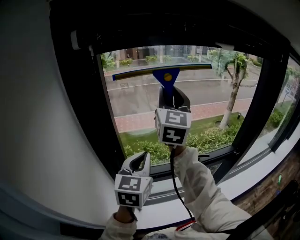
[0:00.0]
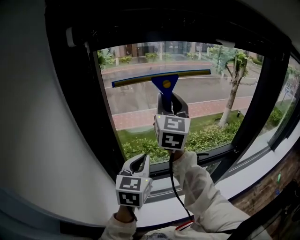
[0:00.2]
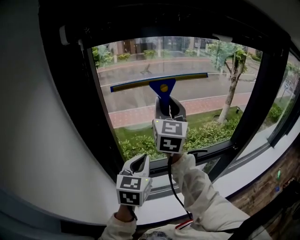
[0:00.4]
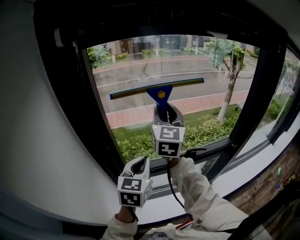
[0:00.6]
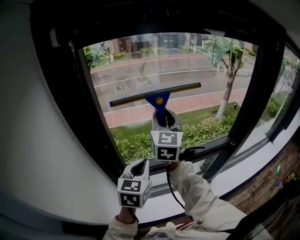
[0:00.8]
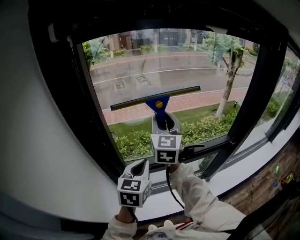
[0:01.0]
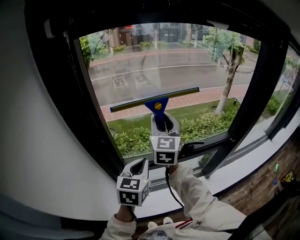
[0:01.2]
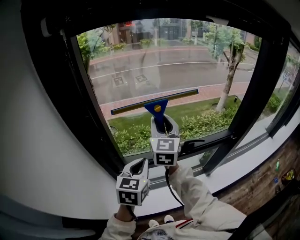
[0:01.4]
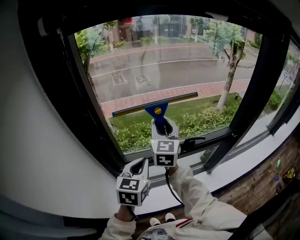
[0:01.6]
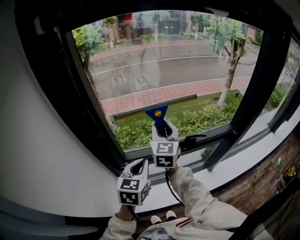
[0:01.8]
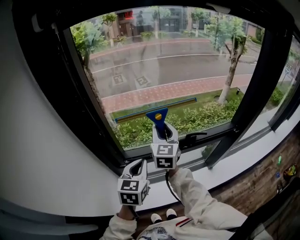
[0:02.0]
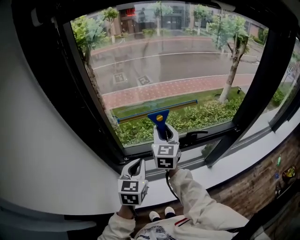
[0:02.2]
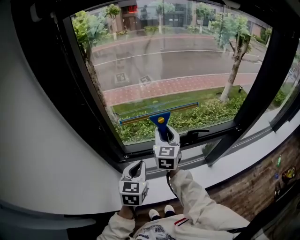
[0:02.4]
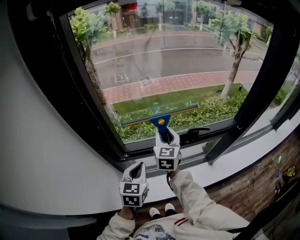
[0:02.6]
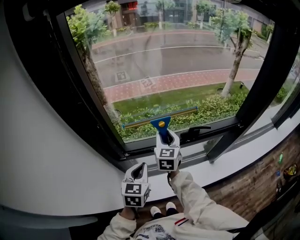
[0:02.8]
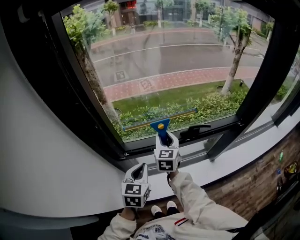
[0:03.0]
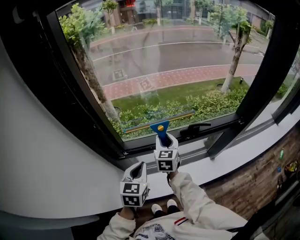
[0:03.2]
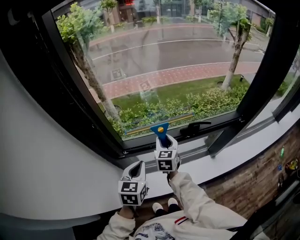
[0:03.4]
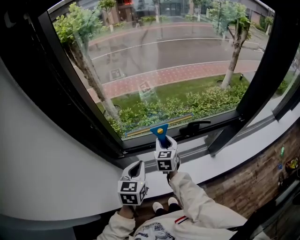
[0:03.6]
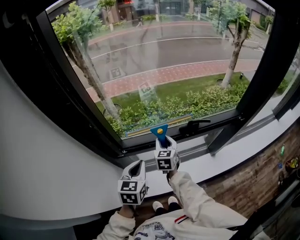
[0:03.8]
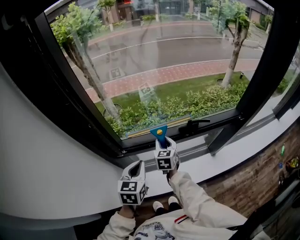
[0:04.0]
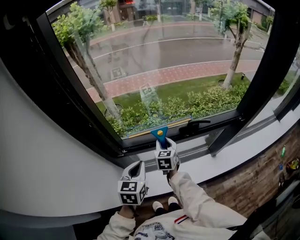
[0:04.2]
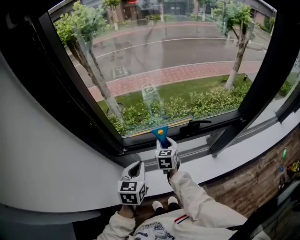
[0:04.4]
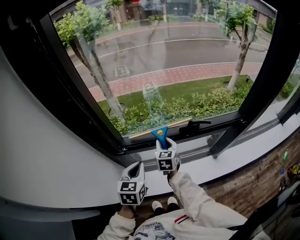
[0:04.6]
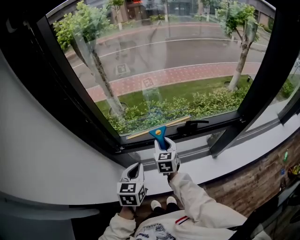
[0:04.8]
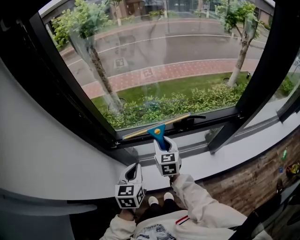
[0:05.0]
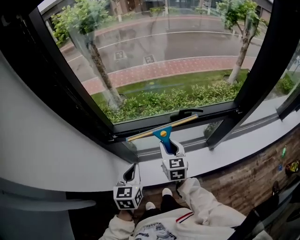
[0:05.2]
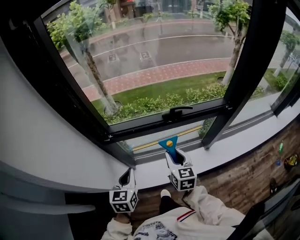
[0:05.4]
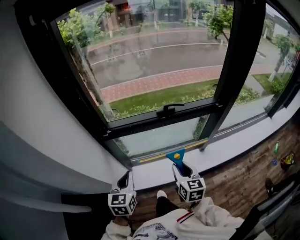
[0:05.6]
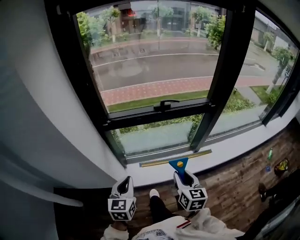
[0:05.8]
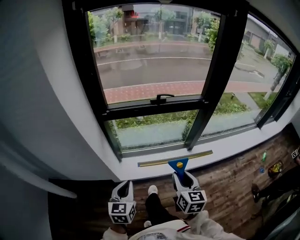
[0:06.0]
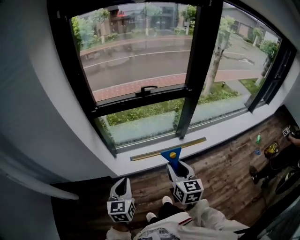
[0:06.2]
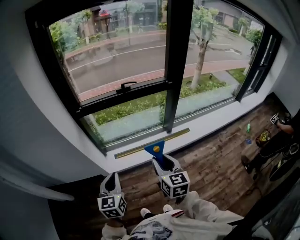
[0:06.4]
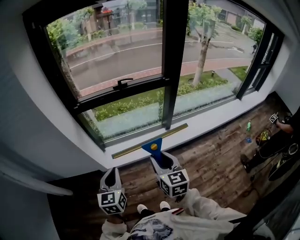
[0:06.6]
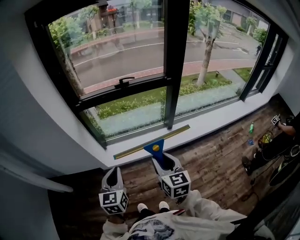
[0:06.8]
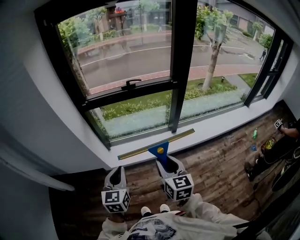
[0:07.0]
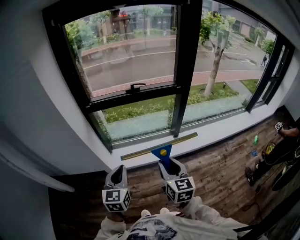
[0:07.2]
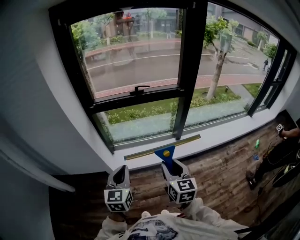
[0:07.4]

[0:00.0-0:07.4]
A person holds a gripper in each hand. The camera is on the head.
0:00.0 to 0:01.4: The left gripper is displaced downward by about 10 cm. Meanwhile the right gripper moves downward, roughly 20 cm.
0:01.4 to 0:03.0: The left gripper travels downward by approximately 10 cm, while the right gripper is displaced downward by some 20 cm.
0:03.0 to 0:04.4: The right gripper heads downward, covering about 10 cm.
0:04.4 to 0:06.0: The left gripper travels backward by roughly 40 cm, while the right gripper goes some 50 cm backward and to the right.
0:06.0 to 0:07.4: The left gripper travels to the right, backward and upward by approximately 15 cm. Meanwhile the right gripper travels backward, to the right and upward by roughly 15 cm.

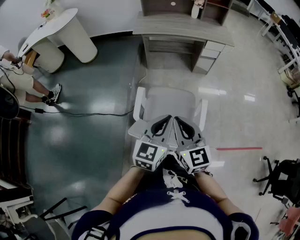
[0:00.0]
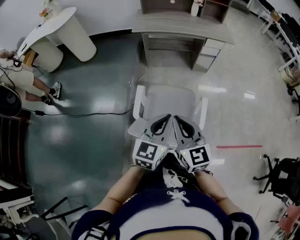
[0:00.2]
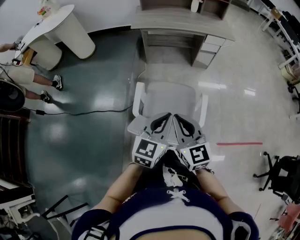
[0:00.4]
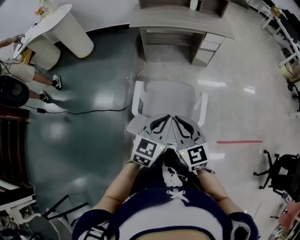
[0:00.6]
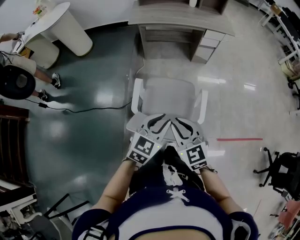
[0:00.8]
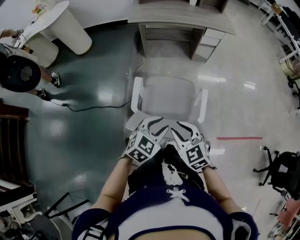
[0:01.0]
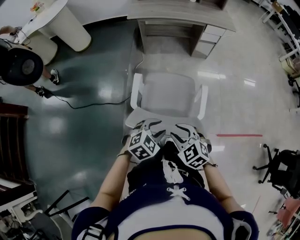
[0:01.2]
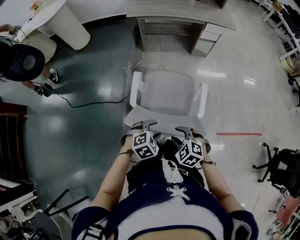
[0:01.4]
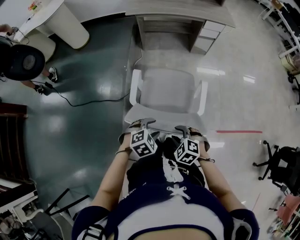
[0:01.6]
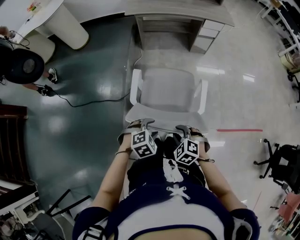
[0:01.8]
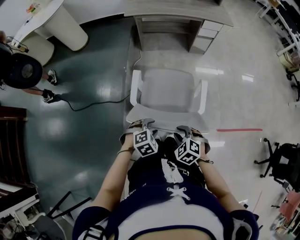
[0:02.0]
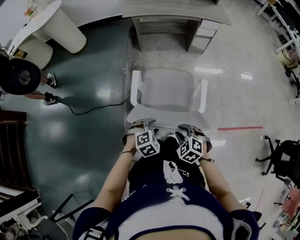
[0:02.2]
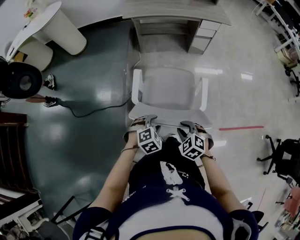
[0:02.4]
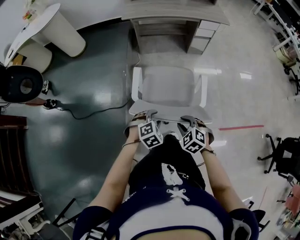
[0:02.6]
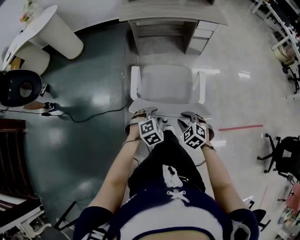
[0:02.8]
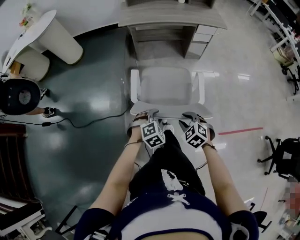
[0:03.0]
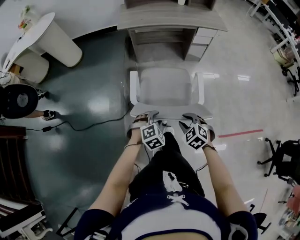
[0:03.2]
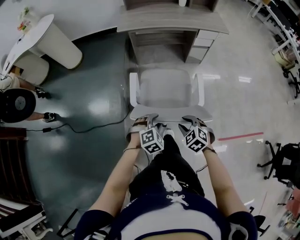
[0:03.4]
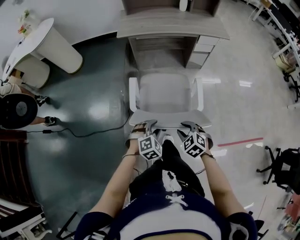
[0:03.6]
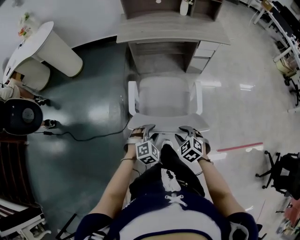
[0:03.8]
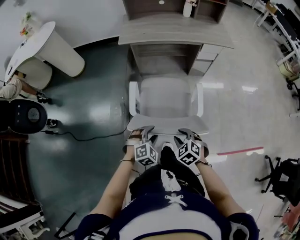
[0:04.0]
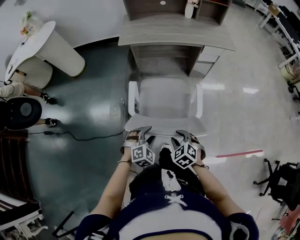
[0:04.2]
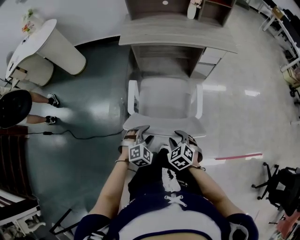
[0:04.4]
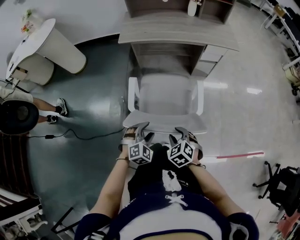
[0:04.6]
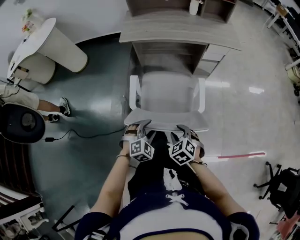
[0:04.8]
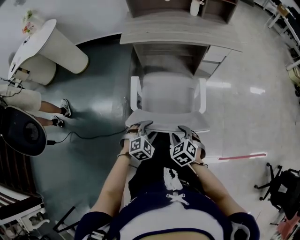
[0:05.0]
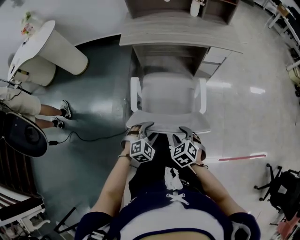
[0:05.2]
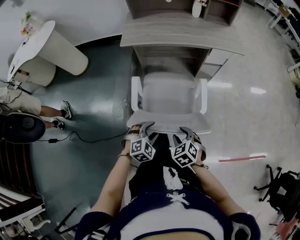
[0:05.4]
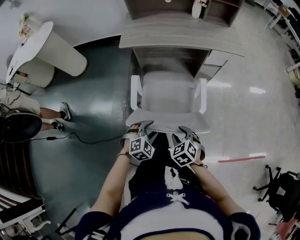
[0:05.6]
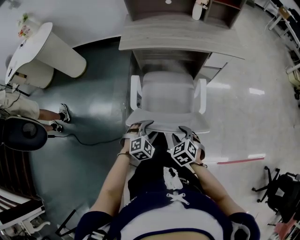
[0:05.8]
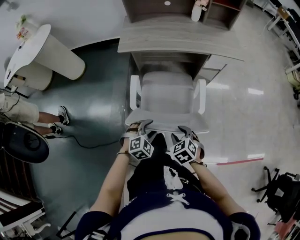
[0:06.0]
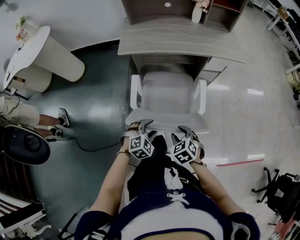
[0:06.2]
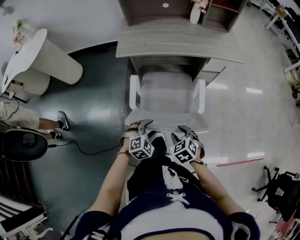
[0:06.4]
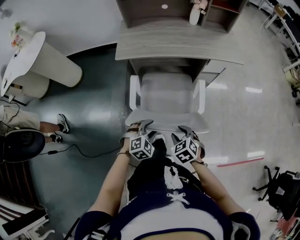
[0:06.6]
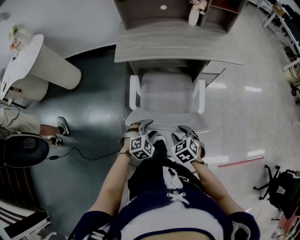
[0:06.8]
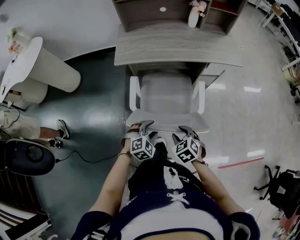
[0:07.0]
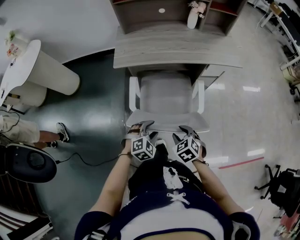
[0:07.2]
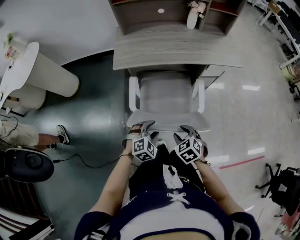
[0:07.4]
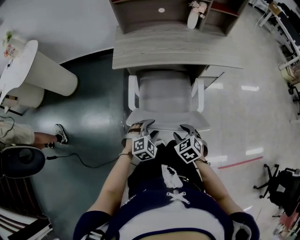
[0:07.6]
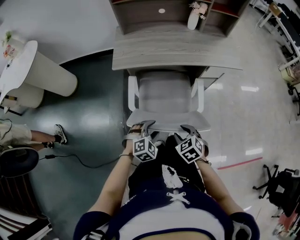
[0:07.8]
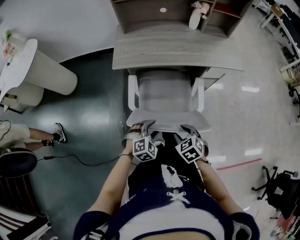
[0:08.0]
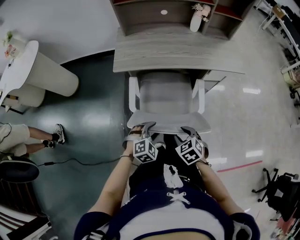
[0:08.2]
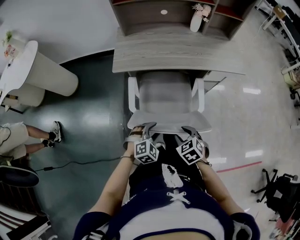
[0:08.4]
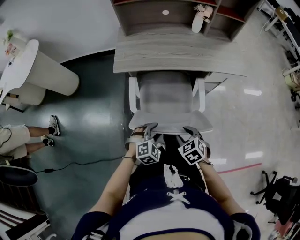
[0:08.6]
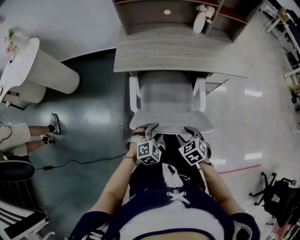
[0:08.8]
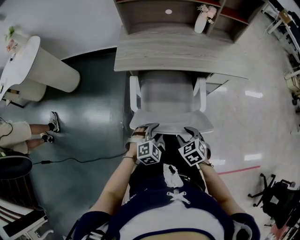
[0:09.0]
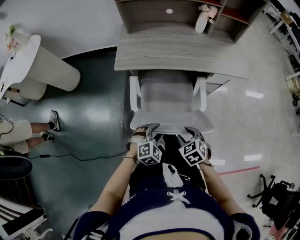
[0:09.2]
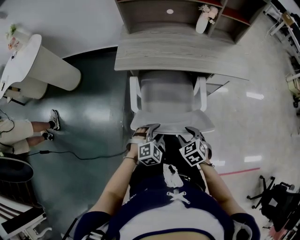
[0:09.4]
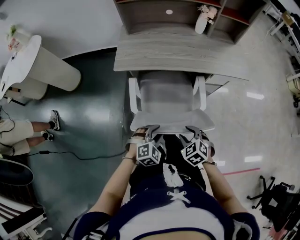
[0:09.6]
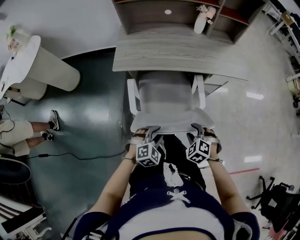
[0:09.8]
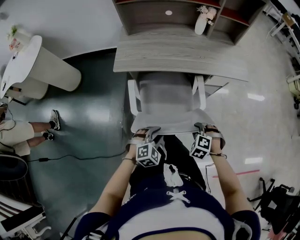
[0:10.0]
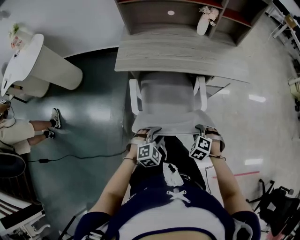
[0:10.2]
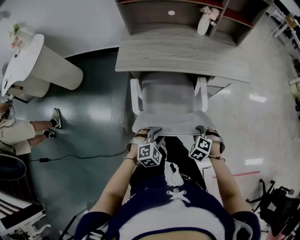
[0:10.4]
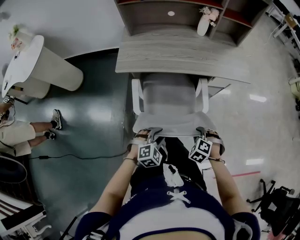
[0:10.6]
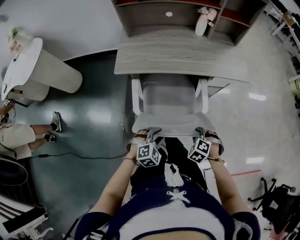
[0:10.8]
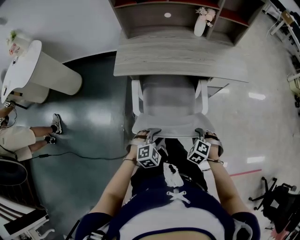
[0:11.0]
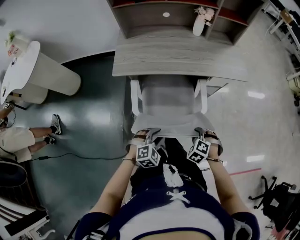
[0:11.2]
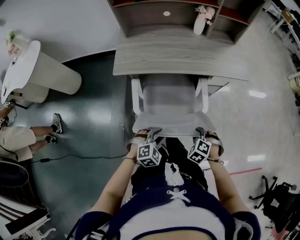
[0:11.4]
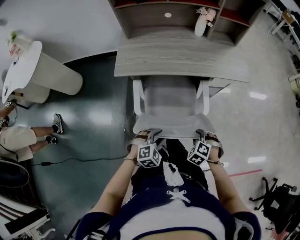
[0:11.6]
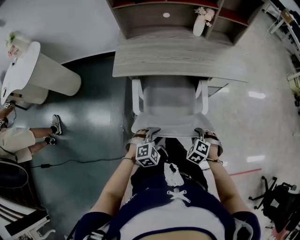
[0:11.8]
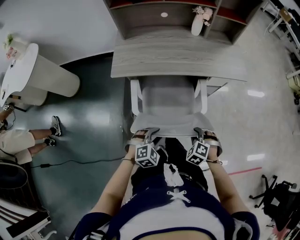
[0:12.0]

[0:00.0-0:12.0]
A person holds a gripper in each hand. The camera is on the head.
0:00.0 to 0:01.6: The two grippers go roughly 25 cm downward and backward. The right gripper points its fingers approximately 50 degrees further downward, and opens its fingers. The left gripper tilts its fingers approximately 50 degrees downward, and opens up.
0:01.6 to 0:03.0: The grippers both shift forward by approximately 10 cm.
0:03.0 to 0:04.4: The grippers both shift forward by some 15 cm.
0:04.4 to 0:06.0: The grippers both shift forward by approximately 15 cm.
0:06.0 to 0:07.6: Both grippers move forward, approximately 10 cm.
0:07.6 to 0:09.0: The right gripper ends up about 5 cm from where it was.
0:09.0 to 0:10.4: The right gripper heads to the right, covering about 10 cm, and turns by about 40 degrees.
0:10.4 to 0:12.0: There are only small adjustments of the grippers.

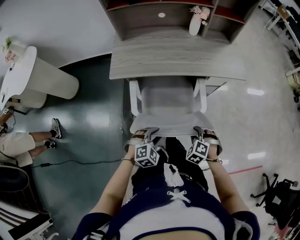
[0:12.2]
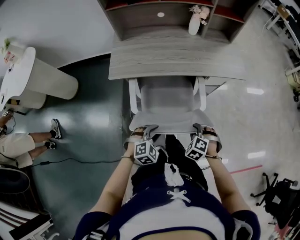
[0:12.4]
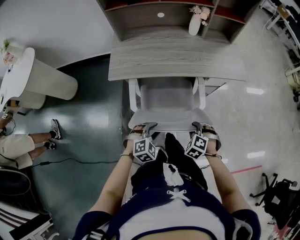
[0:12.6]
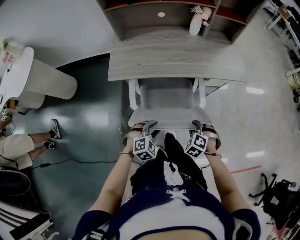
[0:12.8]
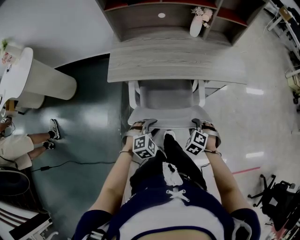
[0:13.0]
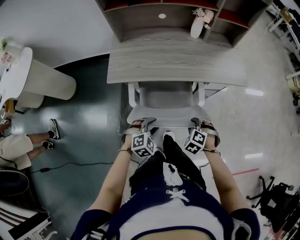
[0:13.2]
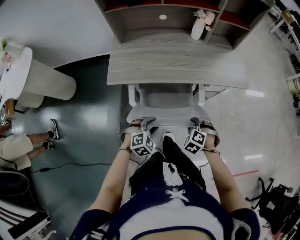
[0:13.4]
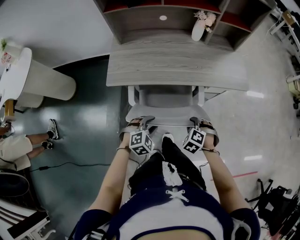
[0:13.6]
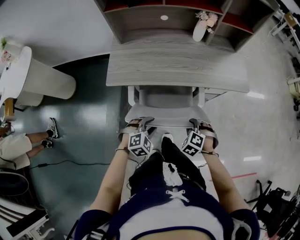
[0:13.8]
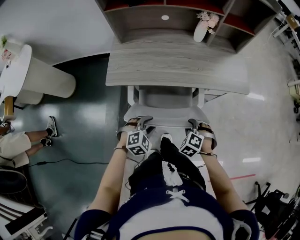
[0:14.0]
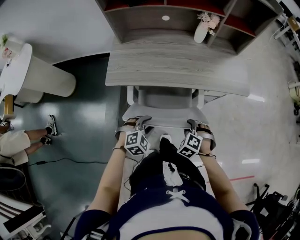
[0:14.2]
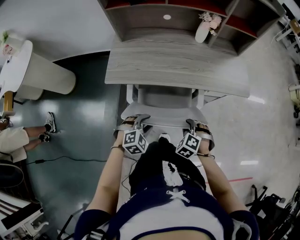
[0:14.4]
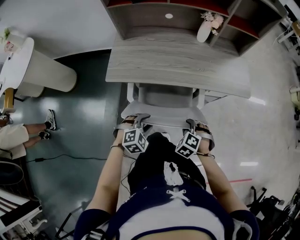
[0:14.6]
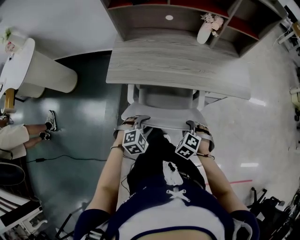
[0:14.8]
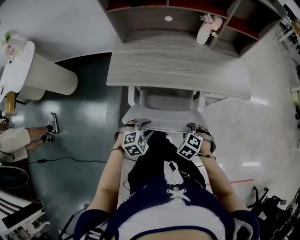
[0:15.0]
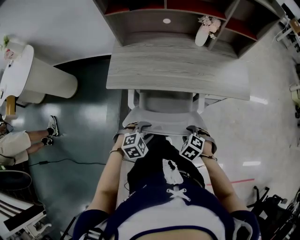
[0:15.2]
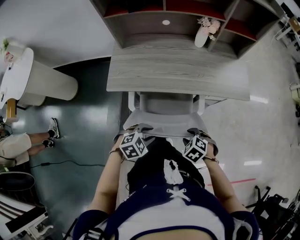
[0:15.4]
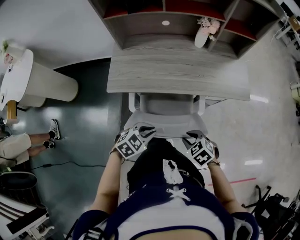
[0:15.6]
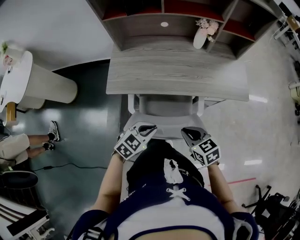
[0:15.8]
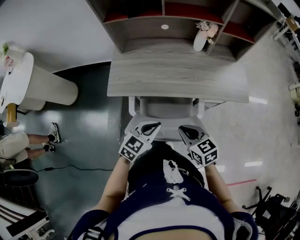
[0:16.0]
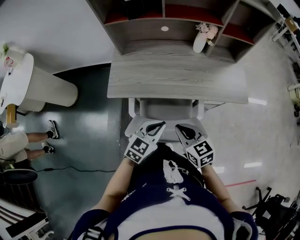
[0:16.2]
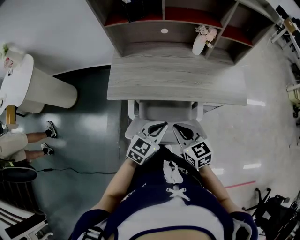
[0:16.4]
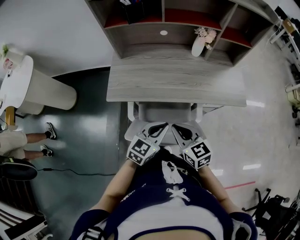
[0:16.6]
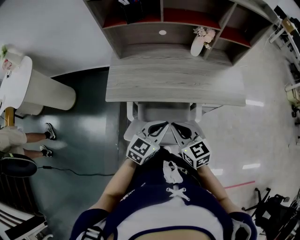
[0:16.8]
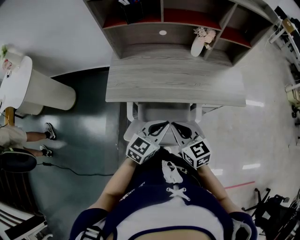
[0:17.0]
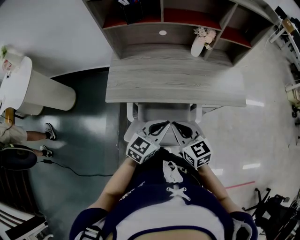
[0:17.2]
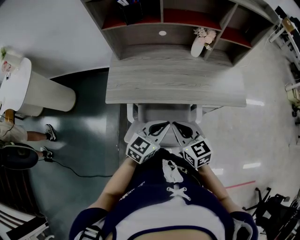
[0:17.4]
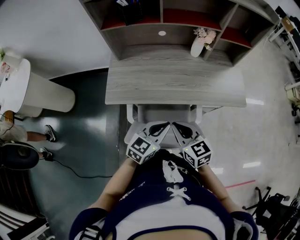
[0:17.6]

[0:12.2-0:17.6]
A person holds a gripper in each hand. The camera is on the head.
0:12.2 to 0:13.6: The grippers both shift forward by approximately 10 cm.
0:13.6 to 0:15.0: The grippers move only a little.
0:15.0 to 0:16.2: The grippers both shift upward by some 15 cm. The left gripper angles its fingers upward, by about 30 degrees, and closes its fingers, while the right gripper points its fingers approximately 50 degrees further upward, and closes its fingers.
0:16.2 to 0:17.6: The right gripper moves approximately 5 cm.
